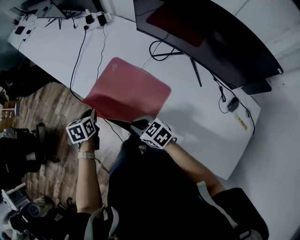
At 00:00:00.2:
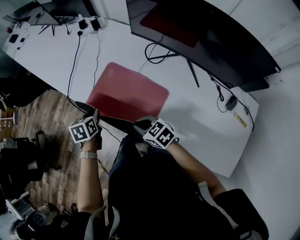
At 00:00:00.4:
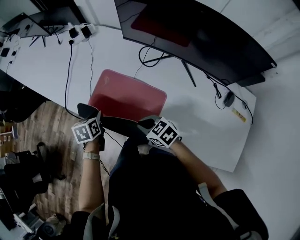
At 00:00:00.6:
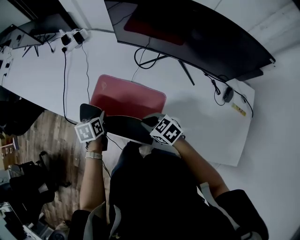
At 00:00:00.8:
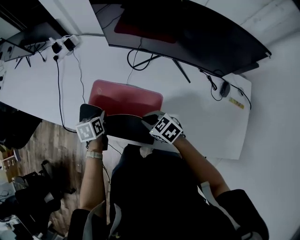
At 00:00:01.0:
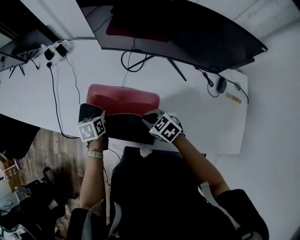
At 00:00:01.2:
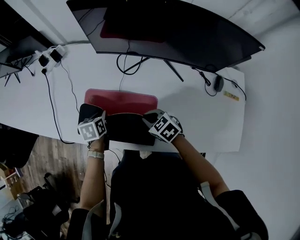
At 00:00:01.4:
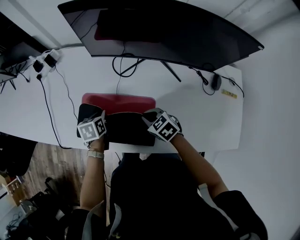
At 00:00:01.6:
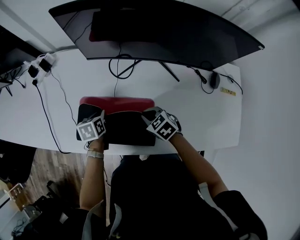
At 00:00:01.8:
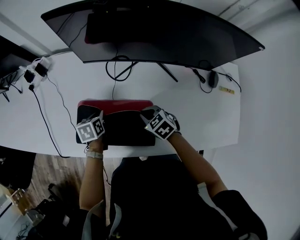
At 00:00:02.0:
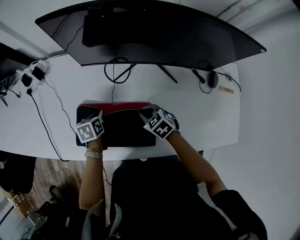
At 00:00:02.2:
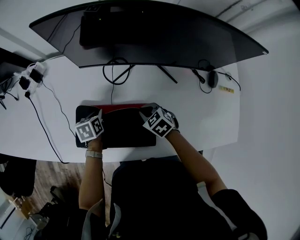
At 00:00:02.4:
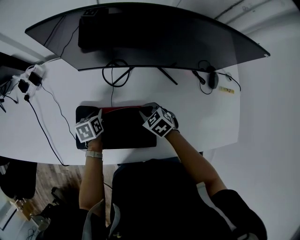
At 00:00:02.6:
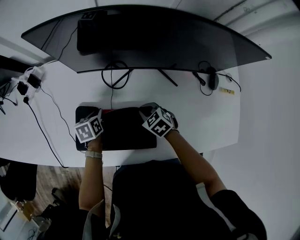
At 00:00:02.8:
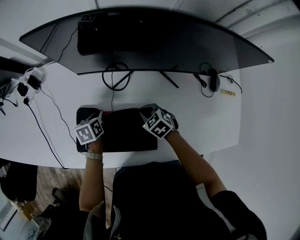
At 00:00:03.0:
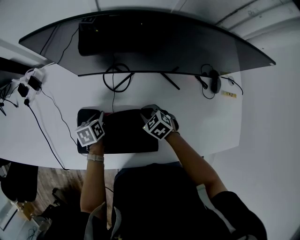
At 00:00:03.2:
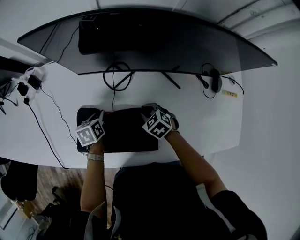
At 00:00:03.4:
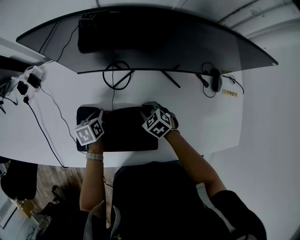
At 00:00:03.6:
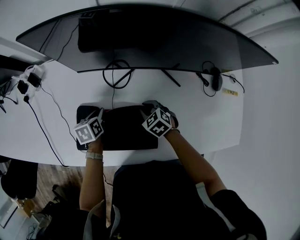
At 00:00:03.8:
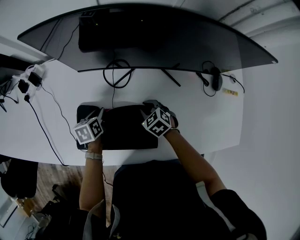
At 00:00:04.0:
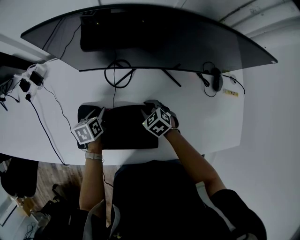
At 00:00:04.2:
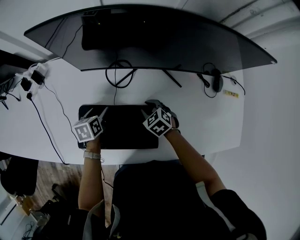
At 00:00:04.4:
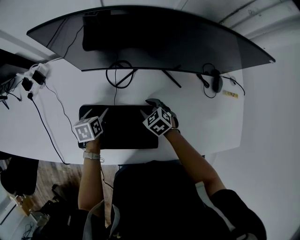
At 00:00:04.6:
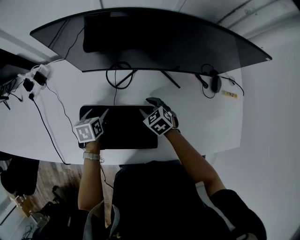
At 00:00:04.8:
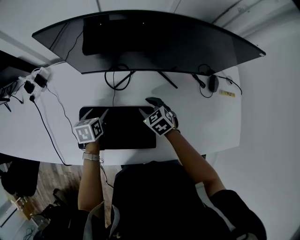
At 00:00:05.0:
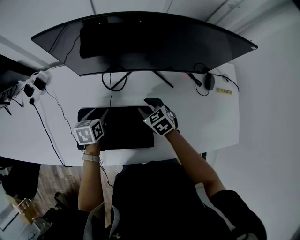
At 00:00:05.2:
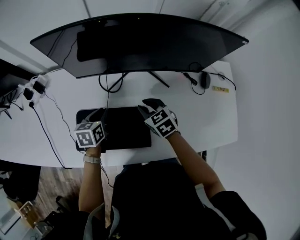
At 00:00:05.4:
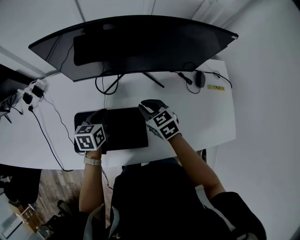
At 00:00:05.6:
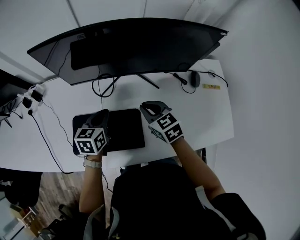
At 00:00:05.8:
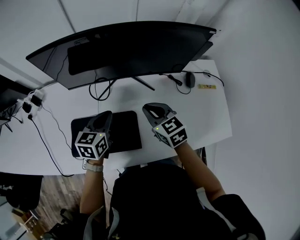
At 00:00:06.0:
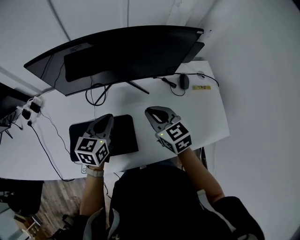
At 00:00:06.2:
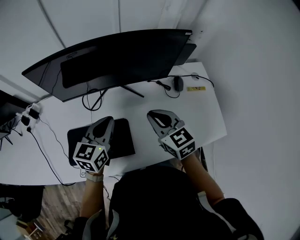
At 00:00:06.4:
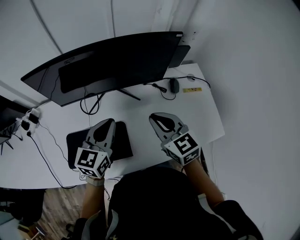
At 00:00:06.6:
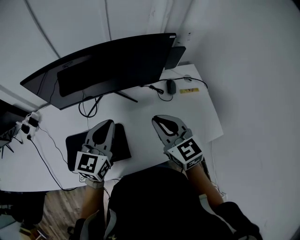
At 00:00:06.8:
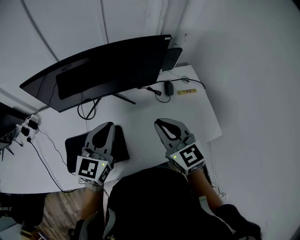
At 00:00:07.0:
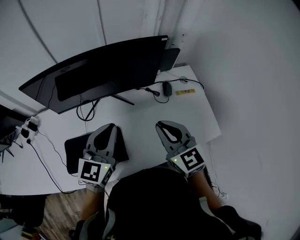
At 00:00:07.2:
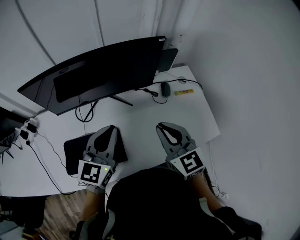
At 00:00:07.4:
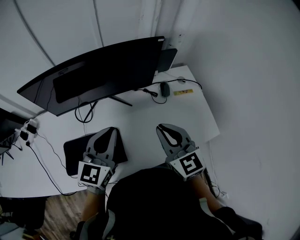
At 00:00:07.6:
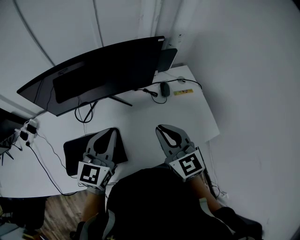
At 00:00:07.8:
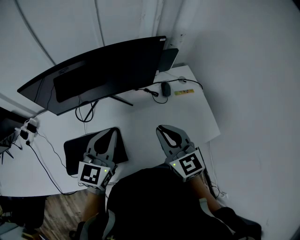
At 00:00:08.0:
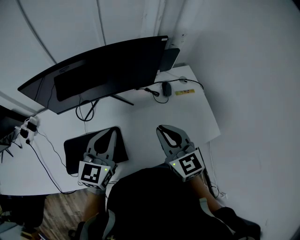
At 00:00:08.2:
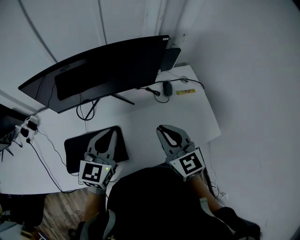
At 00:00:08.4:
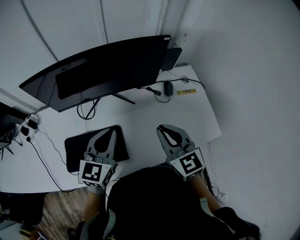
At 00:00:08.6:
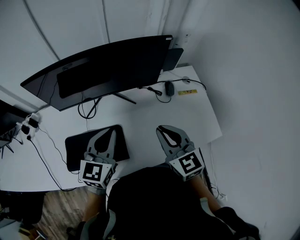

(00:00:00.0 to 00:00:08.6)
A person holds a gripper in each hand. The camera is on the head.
00:00:00.0 - 00:00:01.4: The left gripper moves approximately 25 cm, and changes its angle by roughly 30 degrees. The right gripper changes place by about 20 cm, and turns by approximately 30 degrees.
00:00:01.4 - 00:00:02.8: The right gripper goes some 10 cm forward and downward. Meanwhile the left gripper moves forward, some 10 cm.
00:00:02.8 - 00:00:04.4: The right gripper opens its fingers. The left gripper opens.
00:00:04.4 - 00:00:05.8: The grippers both shift upward and to the right by approximately 25 cm. The right gripper changes its angle by about 30 degrees, and closes, while the left gripper swivels about 40 degrees, and closes up.
00:00:05.8 - 00:00:07.2: The right gripper goes some 20 cm to the right, upward and backward, and changes its angle by roughly 30 degrees. The left gripper heads upward and to the right, covering roughly 20 cm, and changes its angle by approximately 30 degrees.
00:00:07.2 - 00:00:08.6: The grippers stay close to where they were, moving slightly.

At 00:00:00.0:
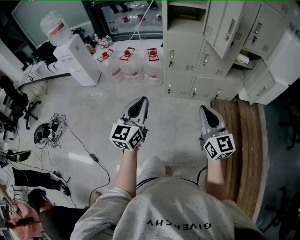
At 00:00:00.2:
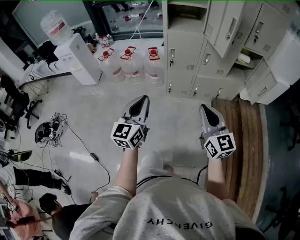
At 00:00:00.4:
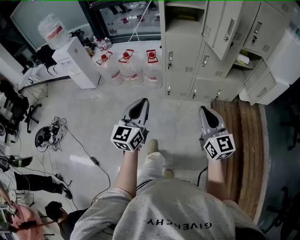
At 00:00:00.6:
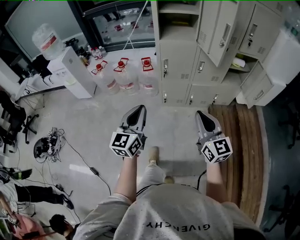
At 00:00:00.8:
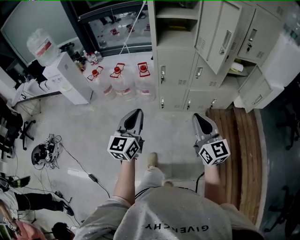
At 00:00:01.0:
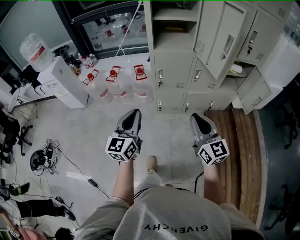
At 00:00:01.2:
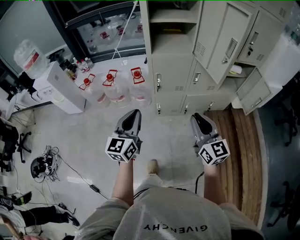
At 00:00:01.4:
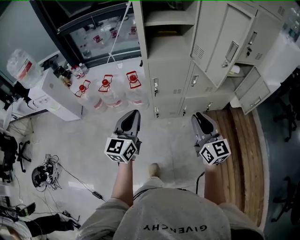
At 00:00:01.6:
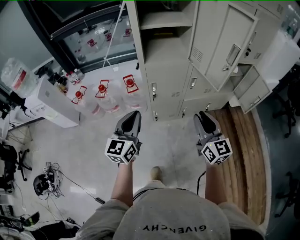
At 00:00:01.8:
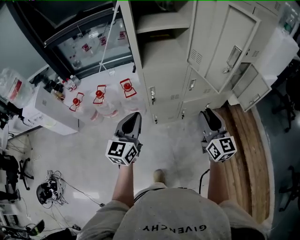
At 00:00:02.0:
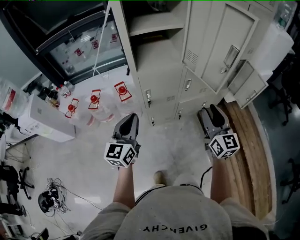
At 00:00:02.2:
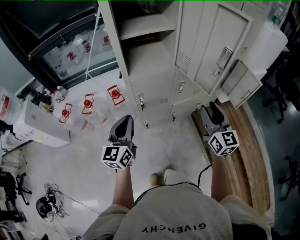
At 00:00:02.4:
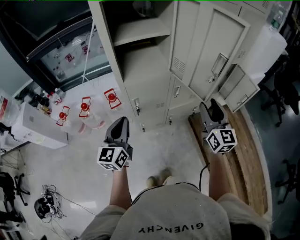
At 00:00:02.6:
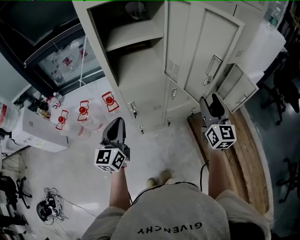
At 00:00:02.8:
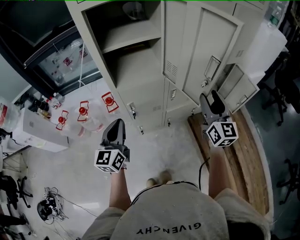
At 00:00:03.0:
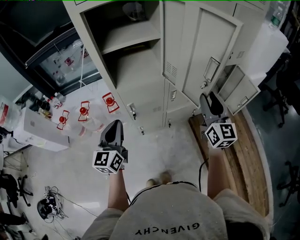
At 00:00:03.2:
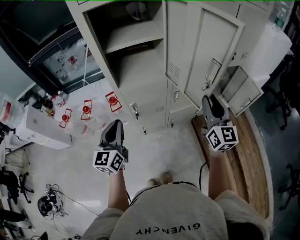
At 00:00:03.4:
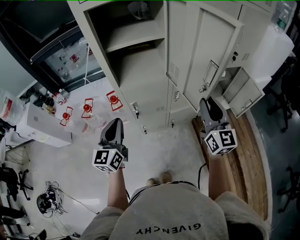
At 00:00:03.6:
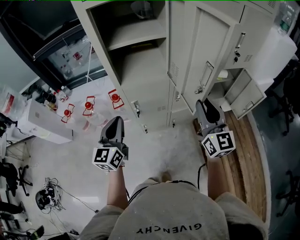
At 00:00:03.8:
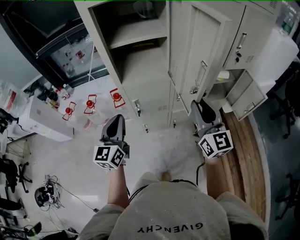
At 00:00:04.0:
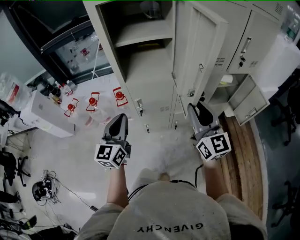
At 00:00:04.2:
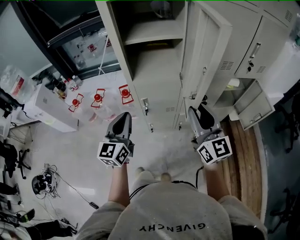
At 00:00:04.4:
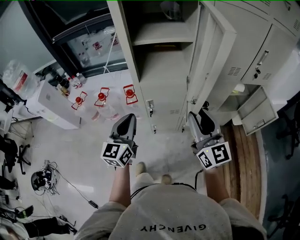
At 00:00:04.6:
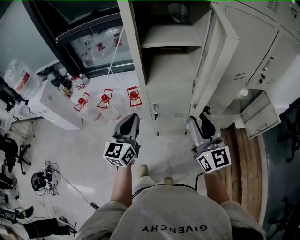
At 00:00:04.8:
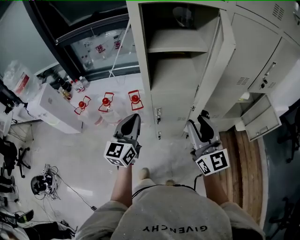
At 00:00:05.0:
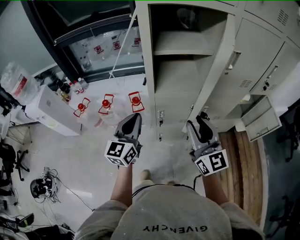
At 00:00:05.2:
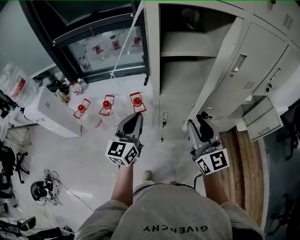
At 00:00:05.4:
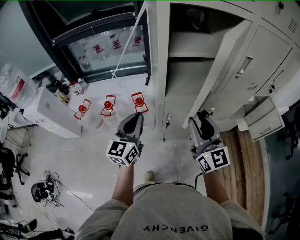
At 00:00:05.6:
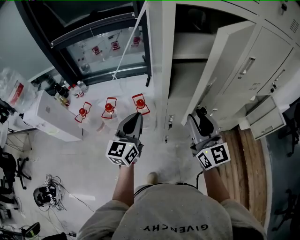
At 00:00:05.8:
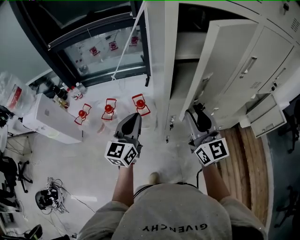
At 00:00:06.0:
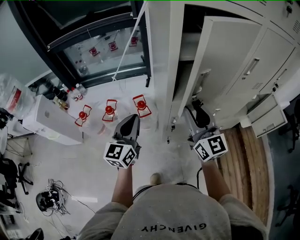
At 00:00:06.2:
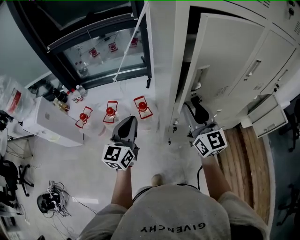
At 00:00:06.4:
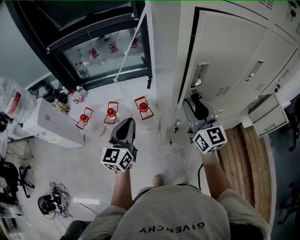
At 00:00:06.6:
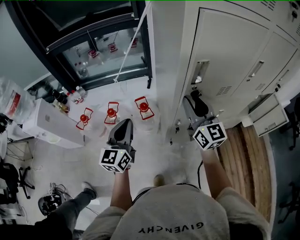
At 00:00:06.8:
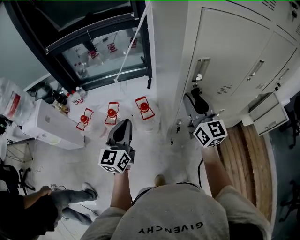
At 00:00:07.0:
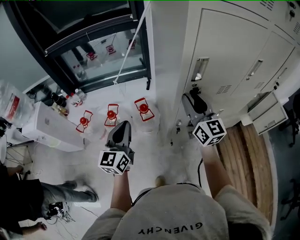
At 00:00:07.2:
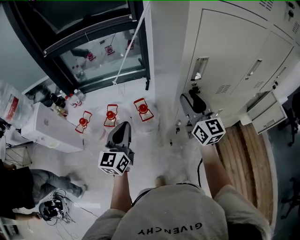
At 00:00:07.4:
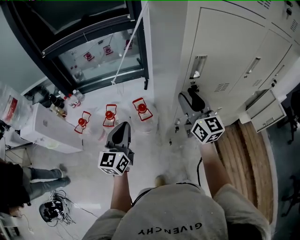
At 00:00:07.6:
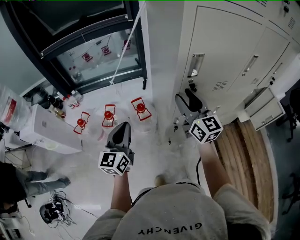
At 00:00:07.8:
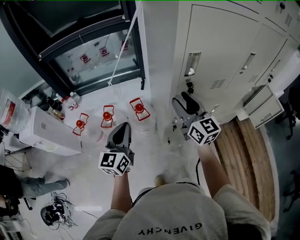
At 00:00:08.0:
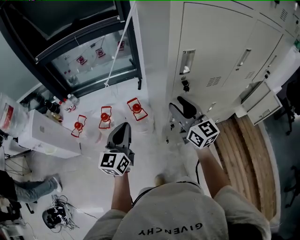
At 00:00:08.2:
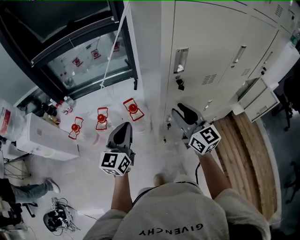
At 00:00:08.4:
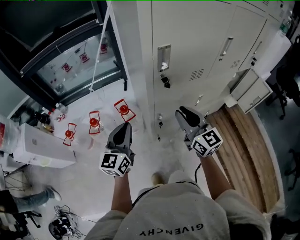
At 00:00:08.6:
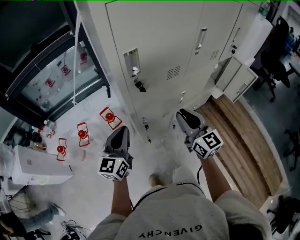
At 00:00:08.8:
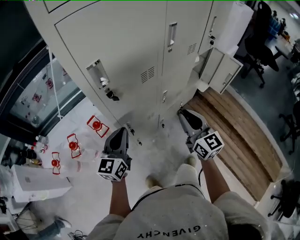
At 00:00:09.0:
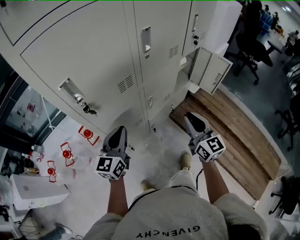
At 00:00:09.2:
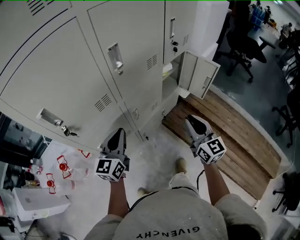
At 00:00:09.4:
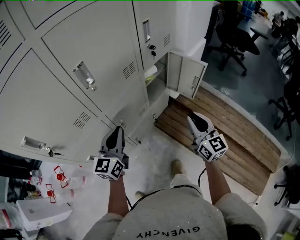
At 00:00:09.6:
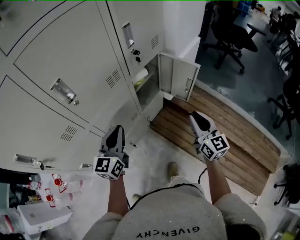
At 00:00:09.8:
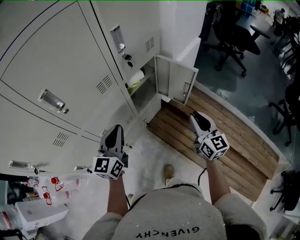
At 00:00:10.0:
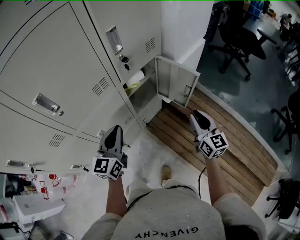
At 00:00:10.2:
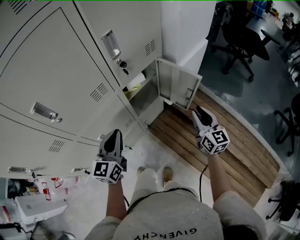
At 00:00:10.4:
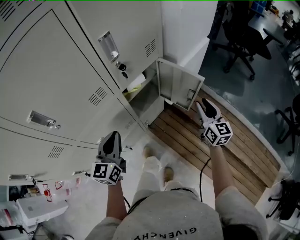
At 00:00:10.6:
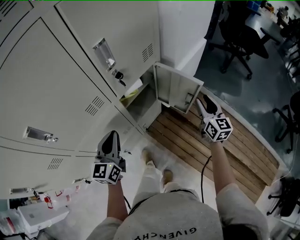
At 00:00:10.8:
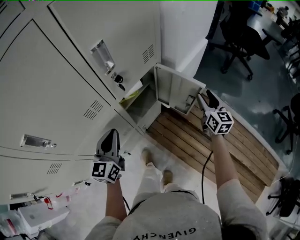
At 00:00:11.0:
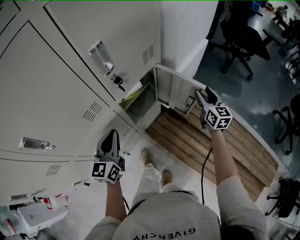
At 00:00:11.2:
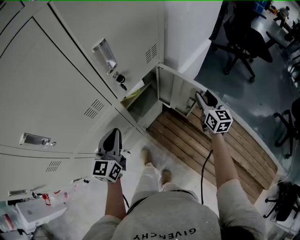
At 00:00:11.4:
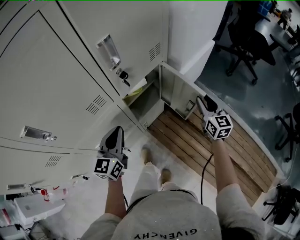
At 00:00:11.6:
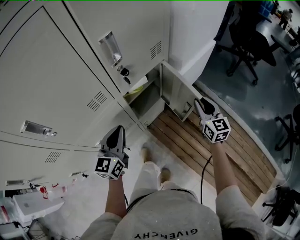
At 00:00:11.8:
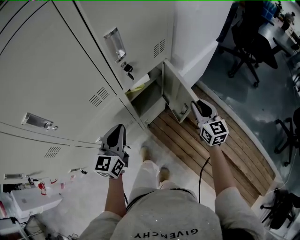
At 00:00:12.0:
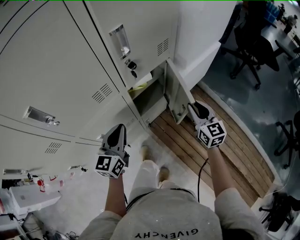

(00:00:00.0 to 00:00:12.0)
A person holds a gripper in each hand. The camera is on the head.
00:00:00.0 - 00:00:01.6: Both grippers move forward, about 30 cm. The right gripper opens up.
00:00:01.6 - 00:00:03.0: The left gripper is displaced forward by about 10 cm; the right gripper shifts approximately 25 cm forward, to the right and upward.
00:00:03.0 - 00:00:04.4: The right gripper shifts about 15 cm to the left, and changes its angle by roughly 20 degrees.
00:00:04.4 - 00:00:06.0: Both grippers travel together to the left and forward, some 25 cm.
00:00:06.0 - 00:00:07.6: The right gripper heads forward, covering about 5 cm, while the left gripper moves to the left, about 5 cm.
00:00:07.6 - 00:00:09.0: The right gripper changes place by about 40 cm, rotates about 30 degrees, and closes. The left gripper moves about 35 cm, and swivels some 30 degrees.
00:00:09.0 - 00:00:10.4: The pair of grippers is taken to the right and forward, approximately 50 cm.
00:00:10.4 - 00:00:12.0: The right gripper moves to the left, about 5 cm, moves roughly 10 cm forward and comes back, and opens and closes again.

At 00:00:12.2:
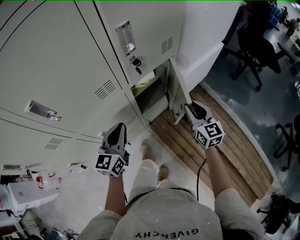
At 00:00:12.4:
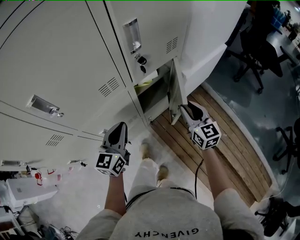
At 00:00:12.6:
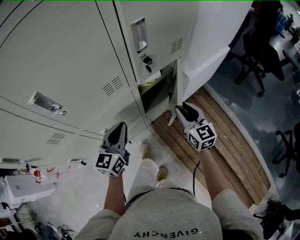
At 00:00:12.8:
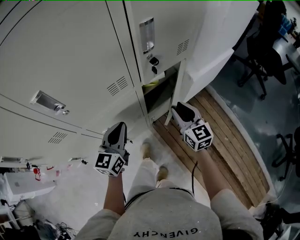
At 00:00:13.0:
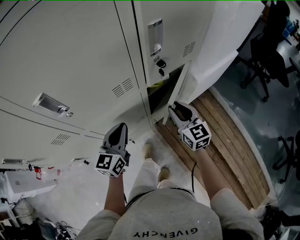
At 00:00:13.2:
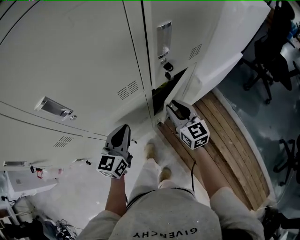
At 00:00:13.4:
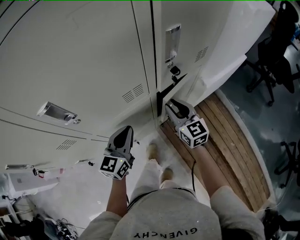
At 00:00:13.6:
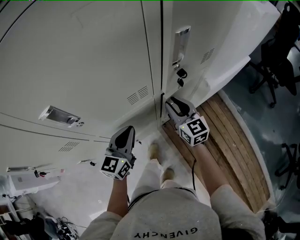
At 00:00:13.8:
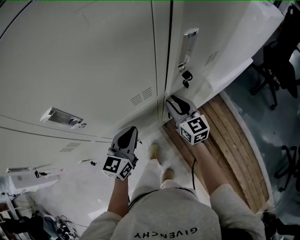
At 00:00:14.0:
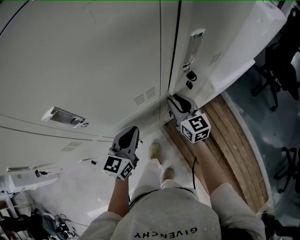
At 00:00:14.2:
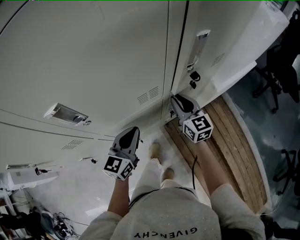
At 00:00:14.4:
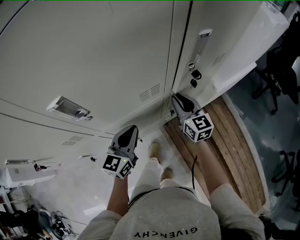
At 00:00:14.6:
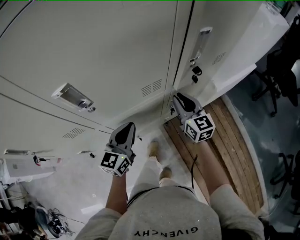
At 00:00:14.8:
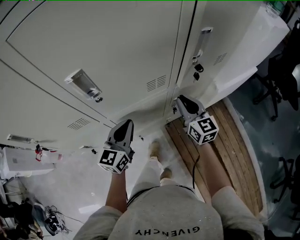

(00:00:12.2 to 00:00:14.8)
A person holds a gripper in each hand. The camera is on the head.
00:00:12.2 - 00:00:13.4: The left gripper is displaced to the left by some 5 cm. The right gripper goes roughly 20 cm to the left and forward.
00:00:13.4 - 00:00:14.8: The left gripper heads to the left, covering some 5 cm.
